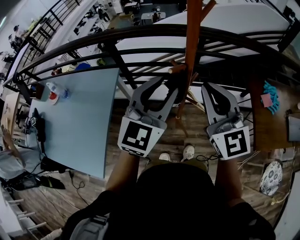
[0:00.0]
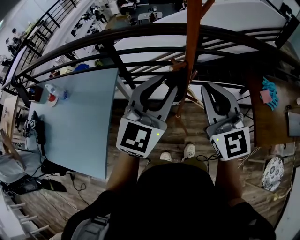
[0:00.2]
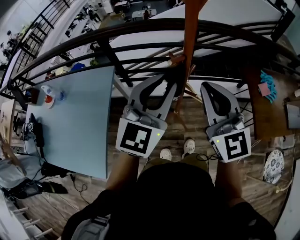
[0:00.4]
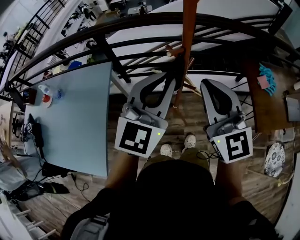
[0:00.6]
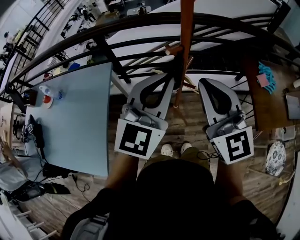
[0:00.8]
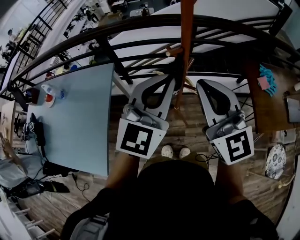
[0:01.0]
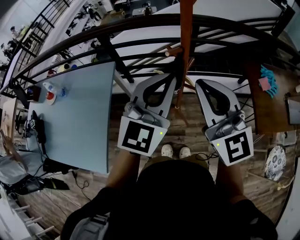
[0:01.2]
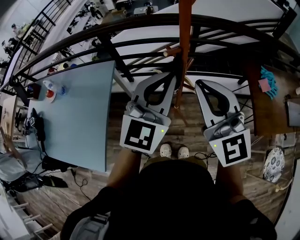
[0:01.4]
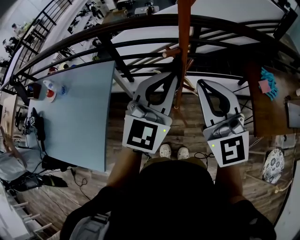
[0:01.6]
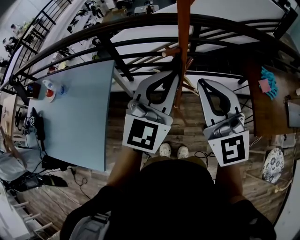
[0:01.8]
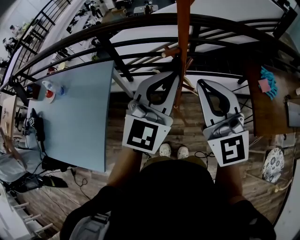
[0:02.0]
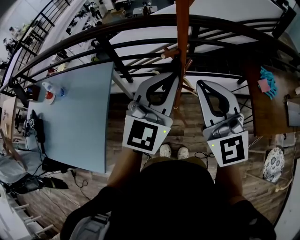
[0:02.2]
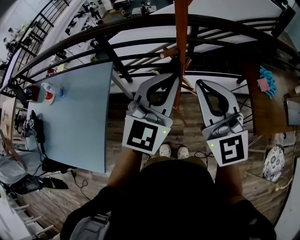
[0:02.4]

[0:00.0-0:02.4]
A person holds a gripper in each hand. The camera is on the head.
0:00.0 to 0:01.2: The right gripper travels backward by roughly 5 cm, while the left gripper closes its fingers.
0:01.2 to 0:02.4: The grippers make only small movements.

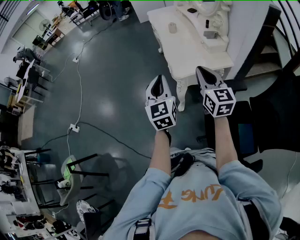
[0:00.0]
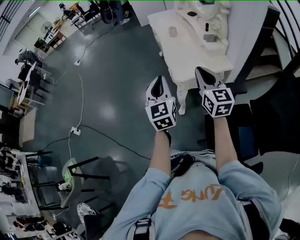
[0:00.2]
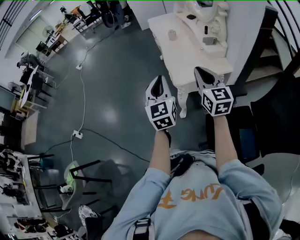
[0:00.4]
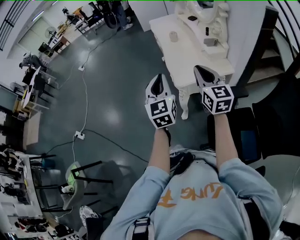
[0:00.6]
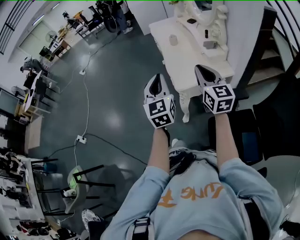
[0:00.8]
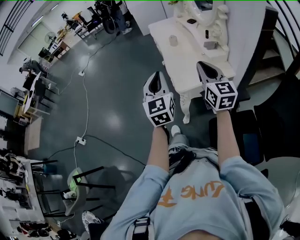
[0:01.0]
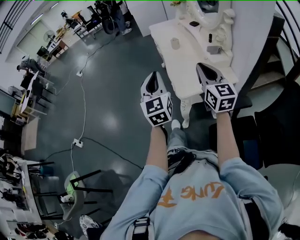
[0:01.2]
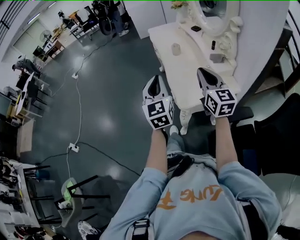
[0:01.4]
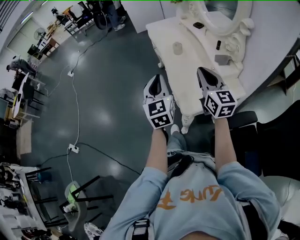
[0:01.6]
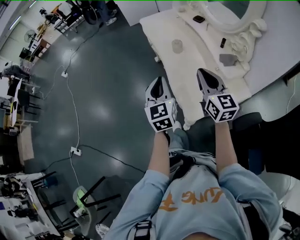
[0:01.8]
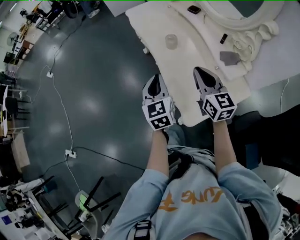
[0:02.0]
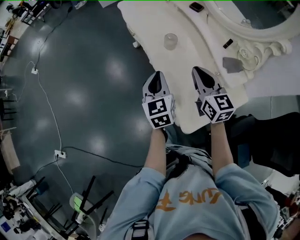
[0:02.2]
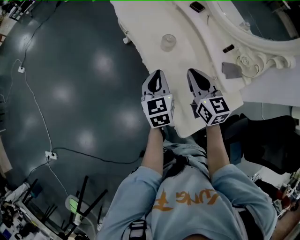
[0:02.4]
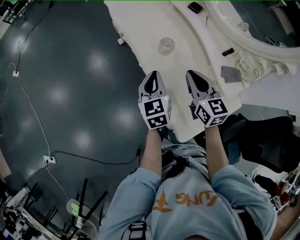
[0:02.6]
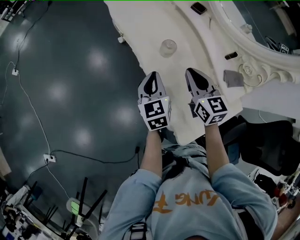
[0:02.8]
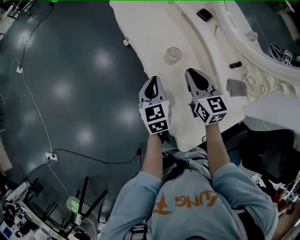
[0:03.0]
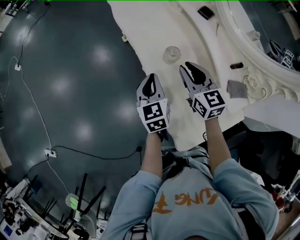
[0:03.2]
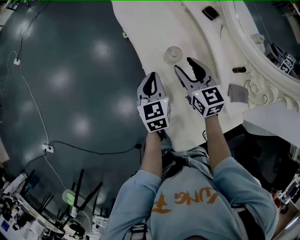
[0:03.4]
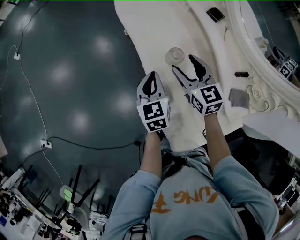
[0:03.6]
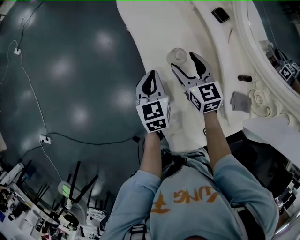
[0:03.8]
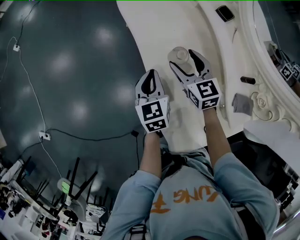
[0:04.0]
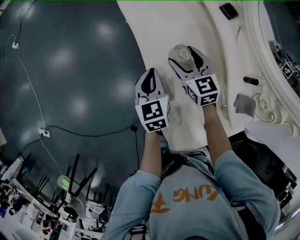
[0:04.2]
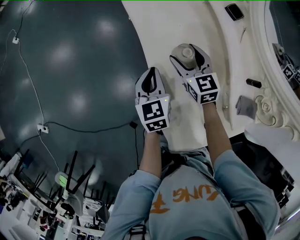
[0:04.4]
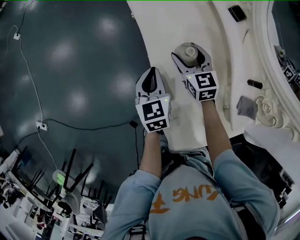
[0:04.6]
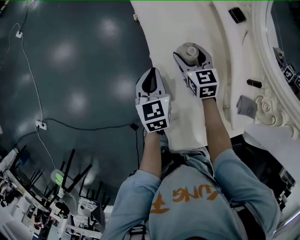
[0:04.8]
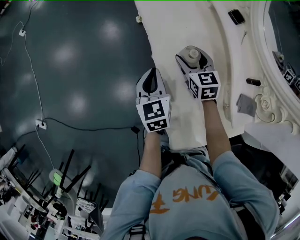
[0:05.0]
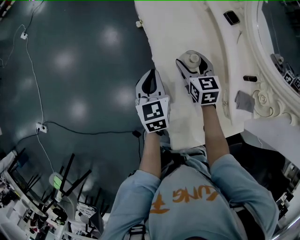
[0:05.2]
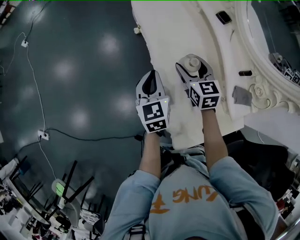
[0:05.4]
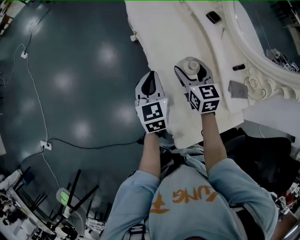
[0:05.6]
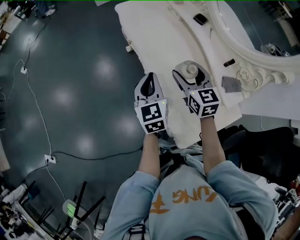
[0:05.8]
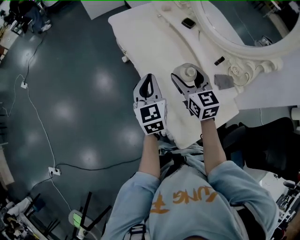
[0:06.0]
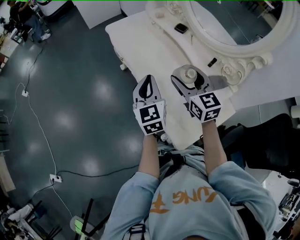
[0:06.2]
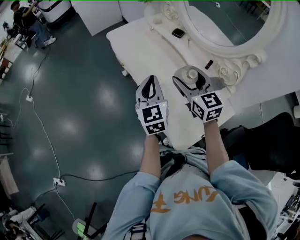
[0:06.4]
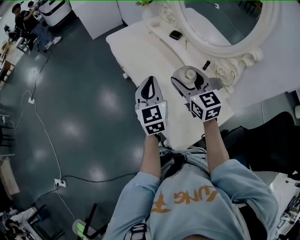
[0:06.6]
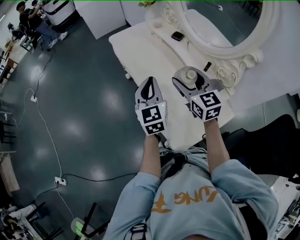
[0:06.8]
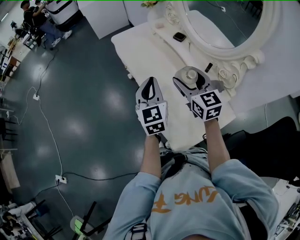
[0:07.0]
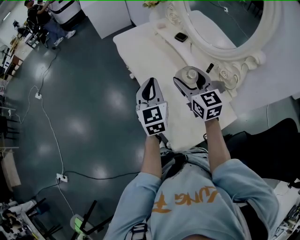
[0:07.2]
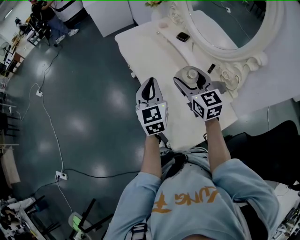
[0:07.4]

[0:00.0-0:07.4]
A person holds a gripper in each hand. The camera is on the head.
0:00.0 to 0:01.4: Both grippers travel together forward, approximately 15 cm.
0:01.4 to 0:03.0: Both grippers travel together forward and downward, about 40 cm. The left gripper swivels roughly 30 degrees. The right gripper turns by approximately 20 degrees.
0:03.0 to 0:04.4: The right gripper travels downward and forward by about 15 cm, and opens up, while the left gripper goes about 5 cm downward.
0:04.4 to 0:06.0: Both grippers travel together upward and backward, about 20 cm. The left gripper rotates some 20 degrees.
0:06.0 to 0:07.4: The two grippers go about 5 cm upward.

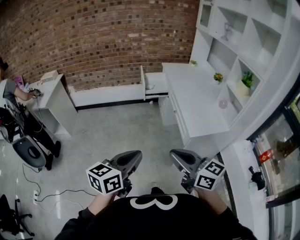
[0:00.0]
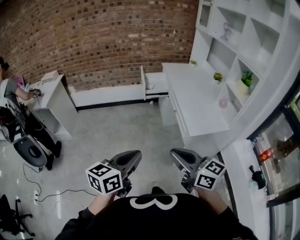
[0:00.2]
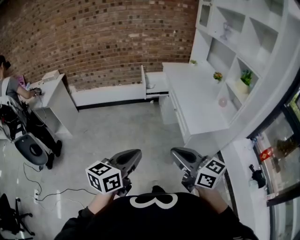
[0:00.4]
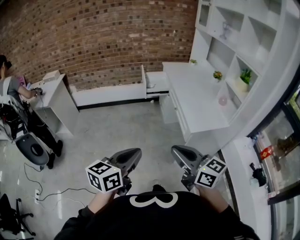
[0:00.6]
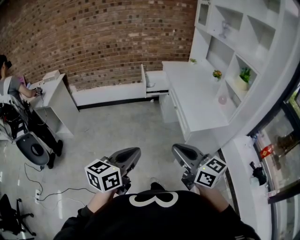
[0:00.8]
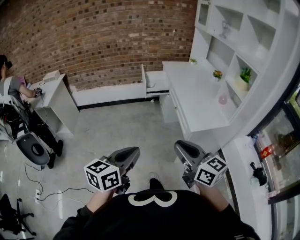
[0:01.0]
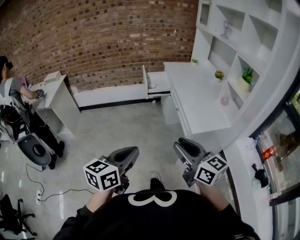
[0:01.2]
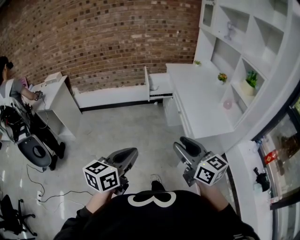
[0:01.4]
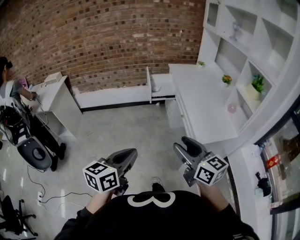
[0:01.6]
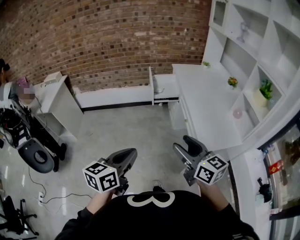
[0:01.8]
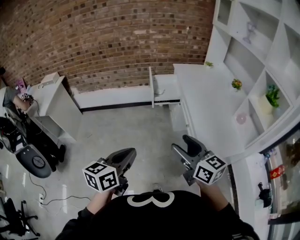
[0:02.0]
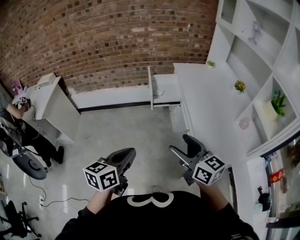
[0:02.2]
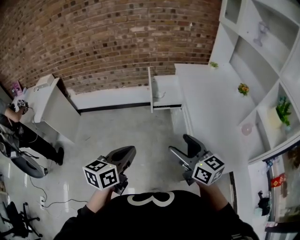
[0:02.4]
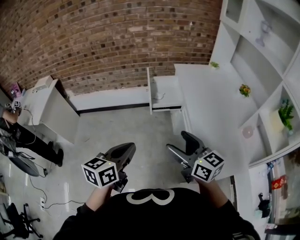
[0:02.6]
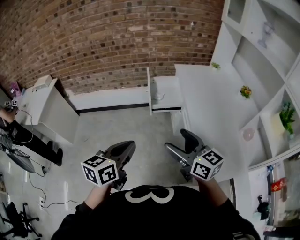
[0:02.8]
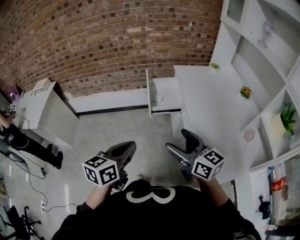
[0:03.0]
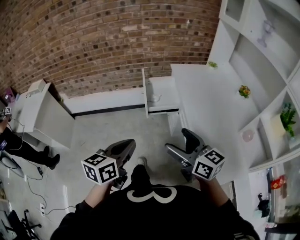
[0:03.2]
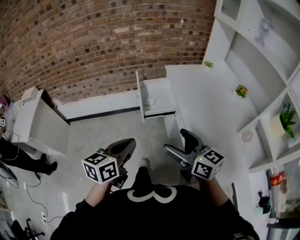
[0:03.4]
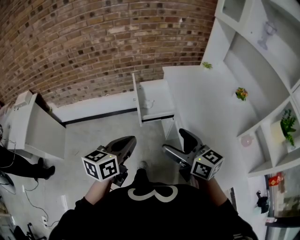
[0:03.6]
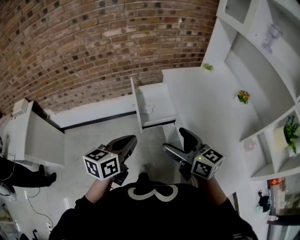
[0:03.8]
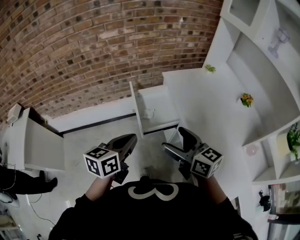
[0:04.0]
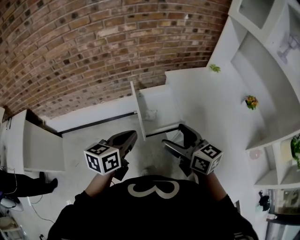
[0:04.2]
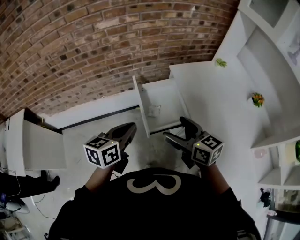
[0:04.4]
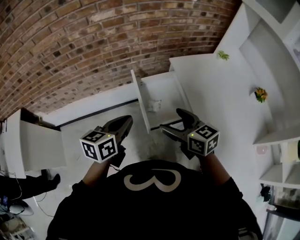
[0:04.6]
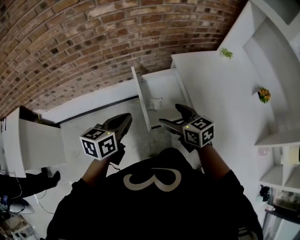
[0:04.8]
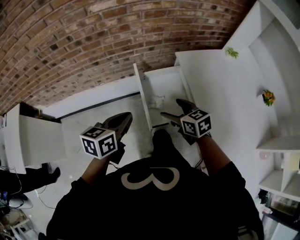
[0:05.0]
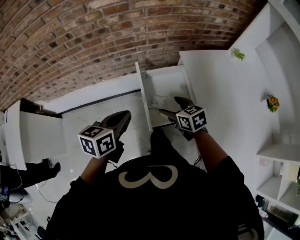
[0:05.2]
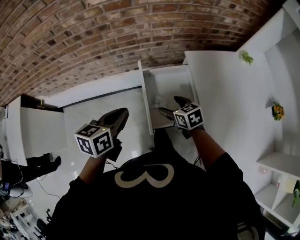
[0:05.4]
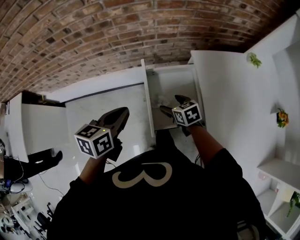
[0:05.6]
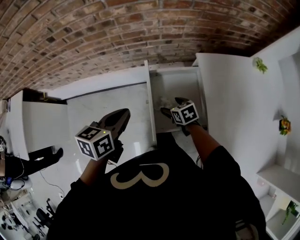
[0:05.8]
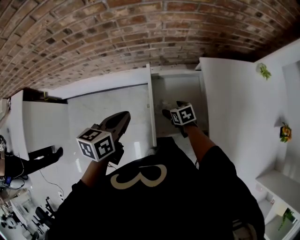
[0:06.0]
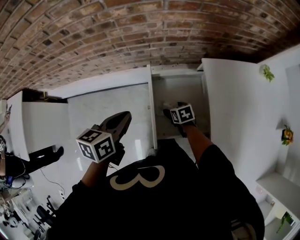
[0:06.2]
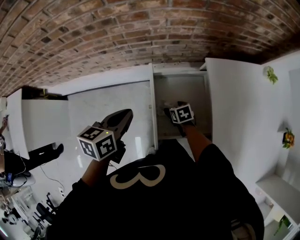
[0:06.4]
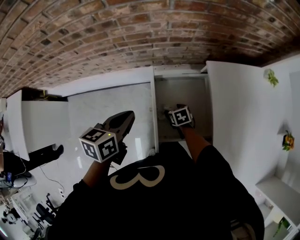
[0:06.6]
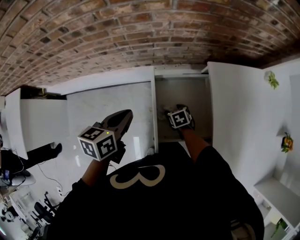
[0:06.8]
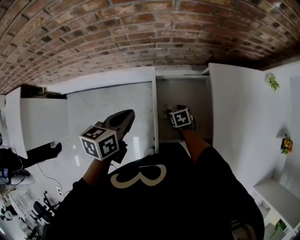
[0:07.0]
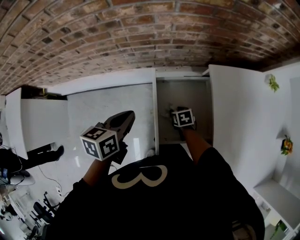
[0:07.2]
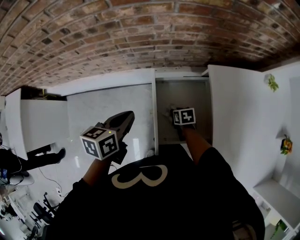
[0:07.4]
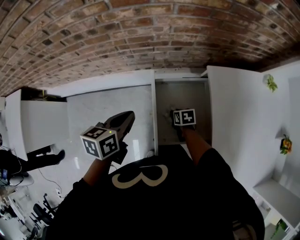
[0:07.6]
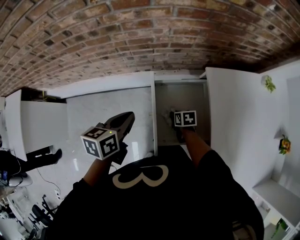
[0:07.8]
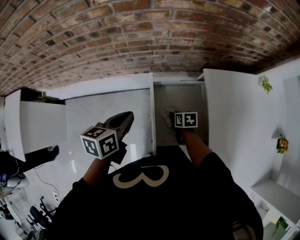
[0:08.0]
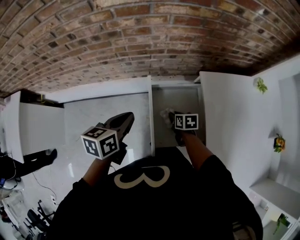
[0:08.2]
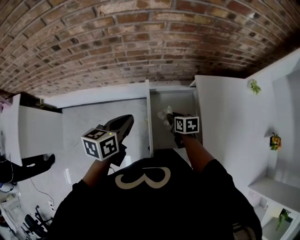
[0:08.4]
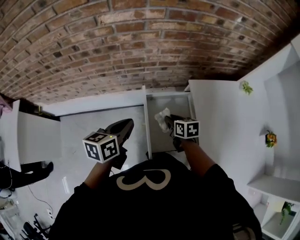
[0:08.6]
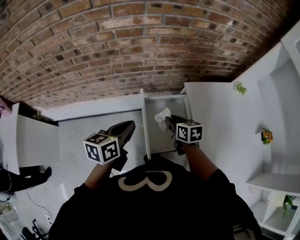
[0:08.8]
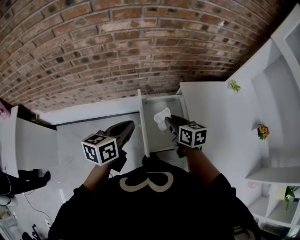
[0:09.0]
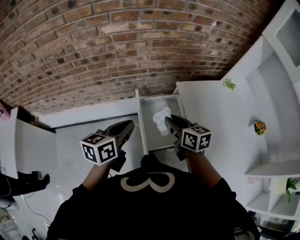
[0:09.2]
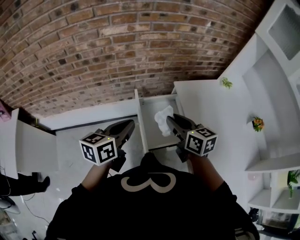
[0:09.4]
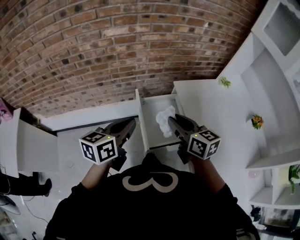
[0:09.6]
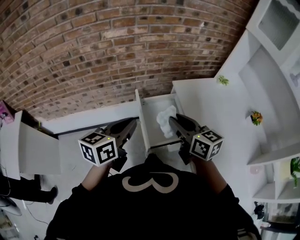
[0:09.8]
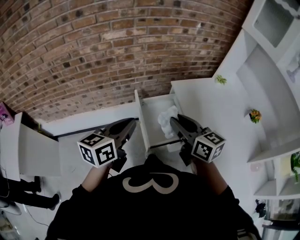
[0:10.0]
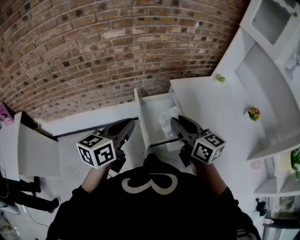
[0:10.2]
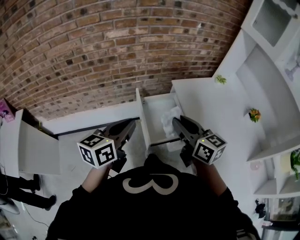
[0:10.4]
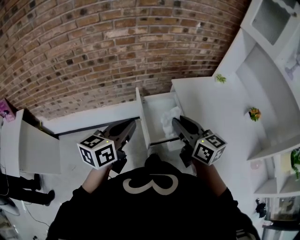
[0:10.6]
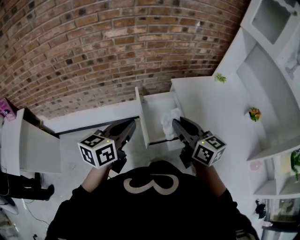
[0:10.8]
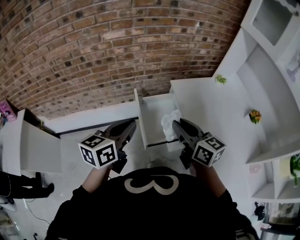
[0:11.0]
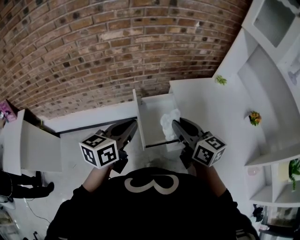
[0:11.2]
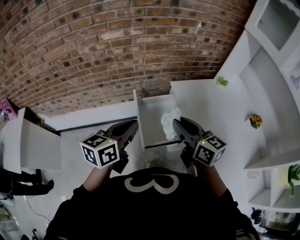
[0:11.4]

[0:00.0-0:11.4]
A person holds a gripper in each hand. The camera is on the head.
0:00.0 to 0:01.4: The grippers move only a little.
0:01.4 to 0:02.8: Both grippers travel together forward, approximately 35 cm. The right gripper opens up.
0:02.8 to 0:04.2: The grippers both shift forward by some 35 cm.
0:04.2 to 0:05.6: The left gripper heads forward and downward, covering about 20 cm. The right gripper moves downward and forward, roughly 40 cm, and angles its fingers downward, by about 40 degrees.
0:05.6 to 0:07.2: The left gripper shifts about 10 cm forward and downward. Meanwhile the right gripper is displaced downward by about 15 cm, and closes up.
0:07.2 to 0:08.6: The left gripper travels upward by some 5 cm; the right gripper shifts about 20 cm upward, and rotates about 20 degrees.
0:08.6 to 0:10.0: The right gripper moves upward and backward, some 35 cm, and angles its fingers upward, by about 30 degrees, while the left gripper heads upward and backward, covering approximately 20 cm, and changes its angle by roughly 20 degrees.
0:10.0 to 0:11.4: The grippers stay close to where they were, moving slightly.

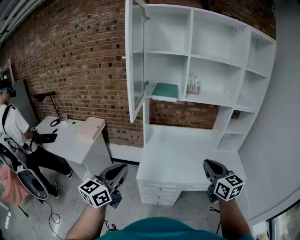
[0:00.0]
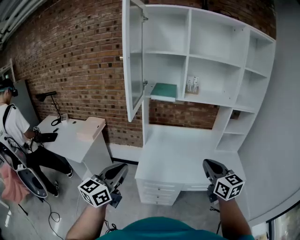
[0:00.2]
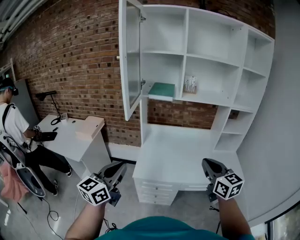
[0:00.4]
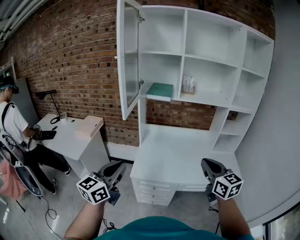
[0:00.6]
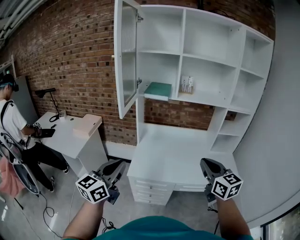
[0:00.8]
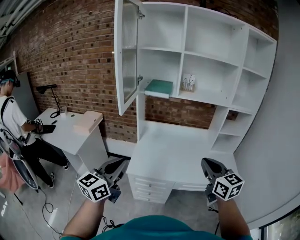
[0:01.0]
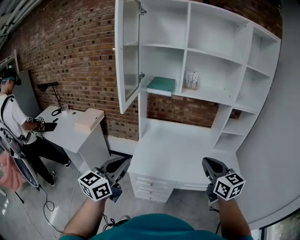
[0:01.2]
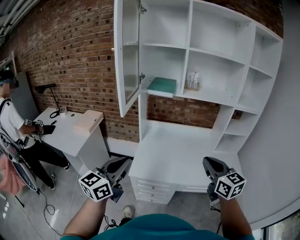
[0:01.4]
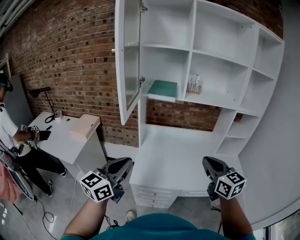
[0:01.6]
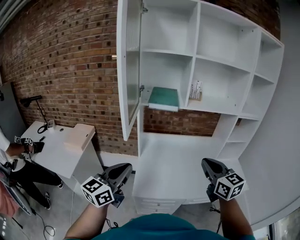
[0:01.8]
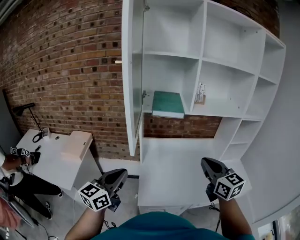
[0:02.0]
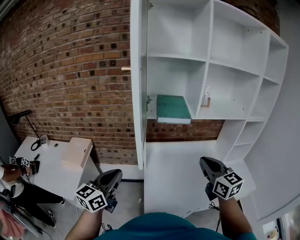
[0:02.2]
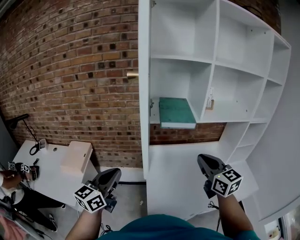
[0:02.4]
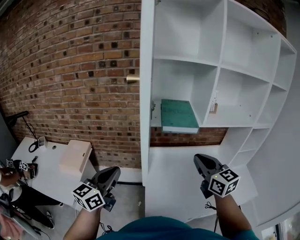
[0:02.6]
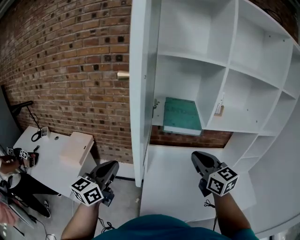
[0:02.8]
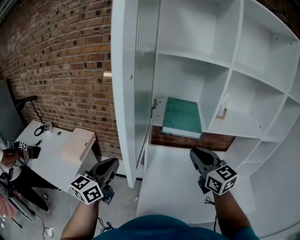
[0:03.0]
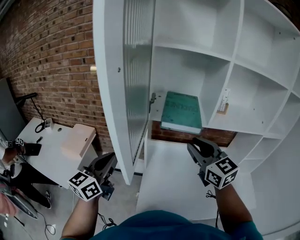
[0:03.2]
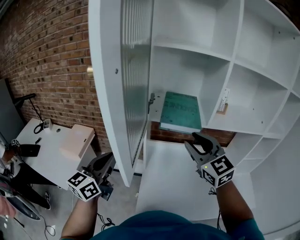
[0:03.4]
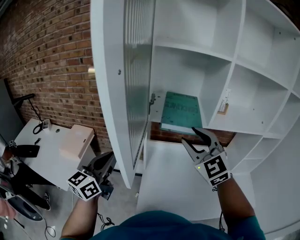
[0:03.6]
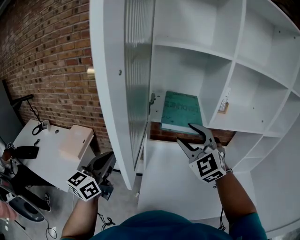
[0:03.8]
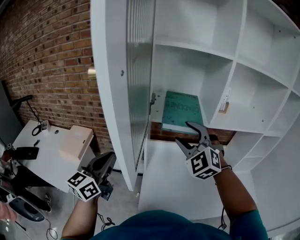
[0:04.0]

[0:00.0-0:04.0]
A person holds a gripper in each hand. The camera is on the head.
0:00.0 to 0:01.4: The right gripper shifts by some 5 cm. The left gripper travels to the right by approximately 5 cm.
0:01.4 to 0:02.6: Both grippers travel together forward and to the left, roughly 35 cm.
0:02.6 to 0:04.0: The right gripper moves forward and to the left, about 15 cm, rotates around the line of its fingers by some 60 degrees, counterclockwise from behind, and opens its fingers.